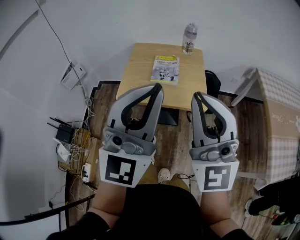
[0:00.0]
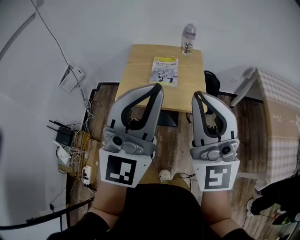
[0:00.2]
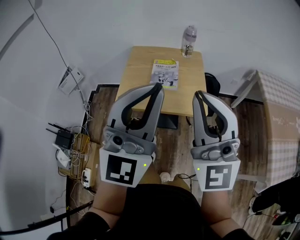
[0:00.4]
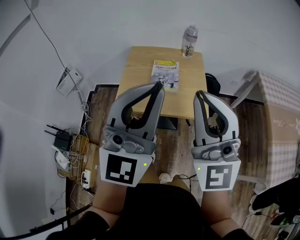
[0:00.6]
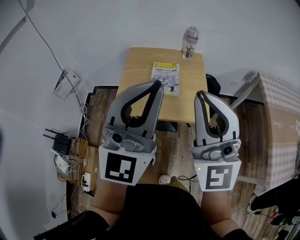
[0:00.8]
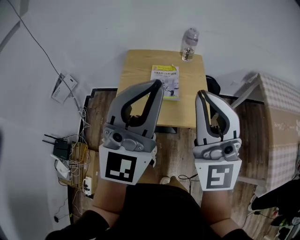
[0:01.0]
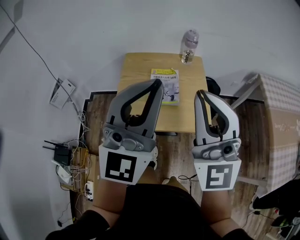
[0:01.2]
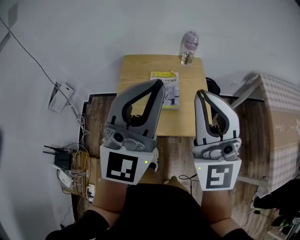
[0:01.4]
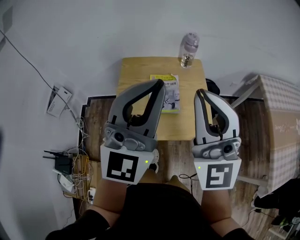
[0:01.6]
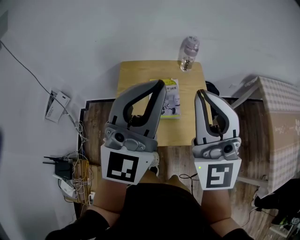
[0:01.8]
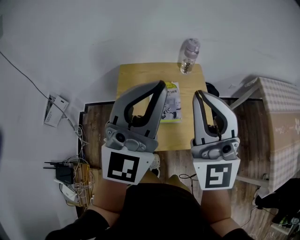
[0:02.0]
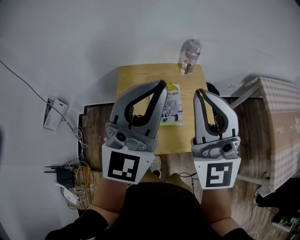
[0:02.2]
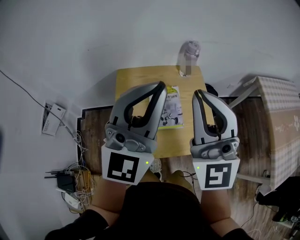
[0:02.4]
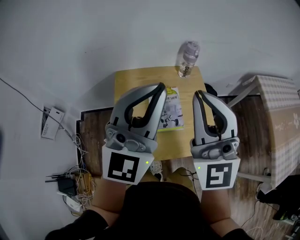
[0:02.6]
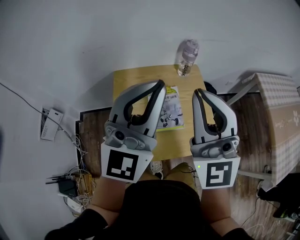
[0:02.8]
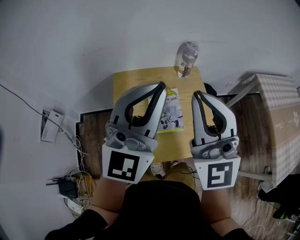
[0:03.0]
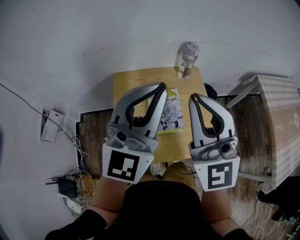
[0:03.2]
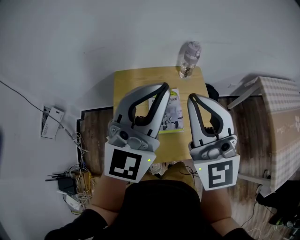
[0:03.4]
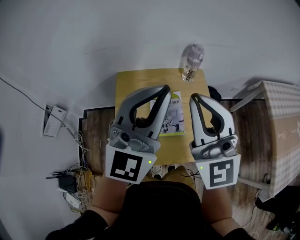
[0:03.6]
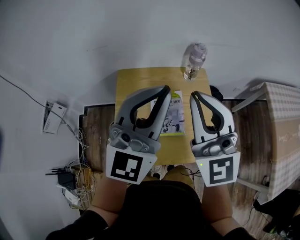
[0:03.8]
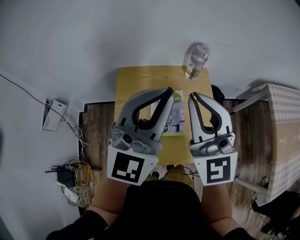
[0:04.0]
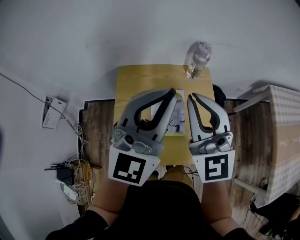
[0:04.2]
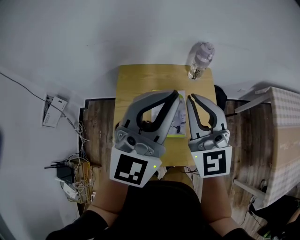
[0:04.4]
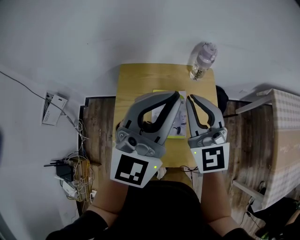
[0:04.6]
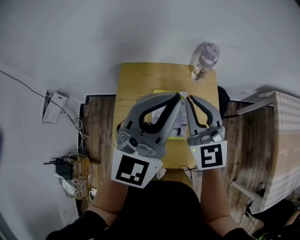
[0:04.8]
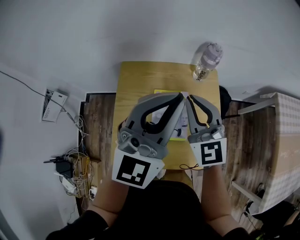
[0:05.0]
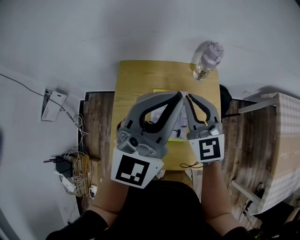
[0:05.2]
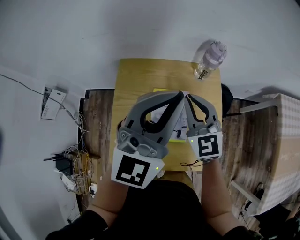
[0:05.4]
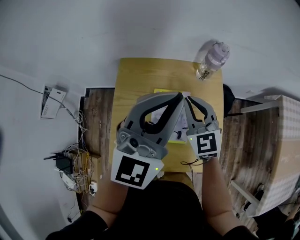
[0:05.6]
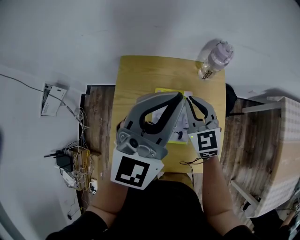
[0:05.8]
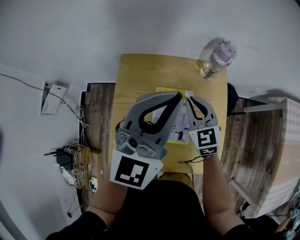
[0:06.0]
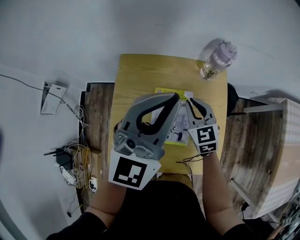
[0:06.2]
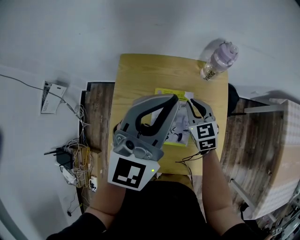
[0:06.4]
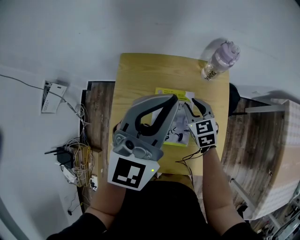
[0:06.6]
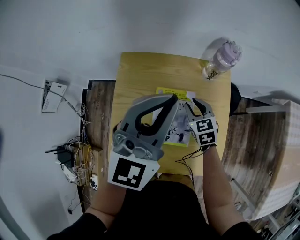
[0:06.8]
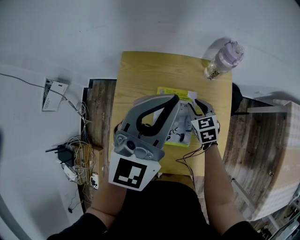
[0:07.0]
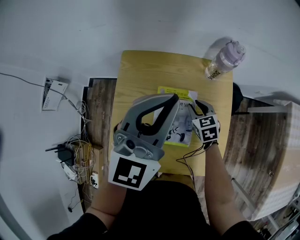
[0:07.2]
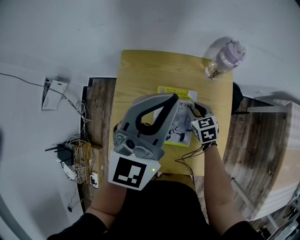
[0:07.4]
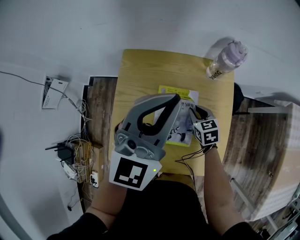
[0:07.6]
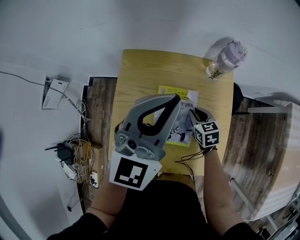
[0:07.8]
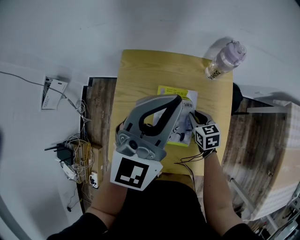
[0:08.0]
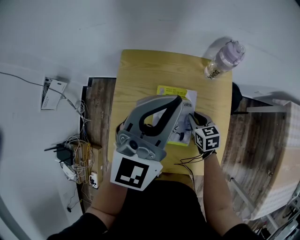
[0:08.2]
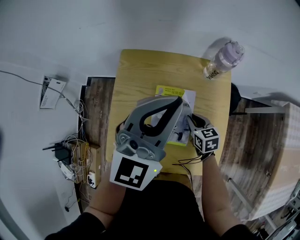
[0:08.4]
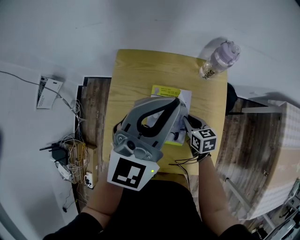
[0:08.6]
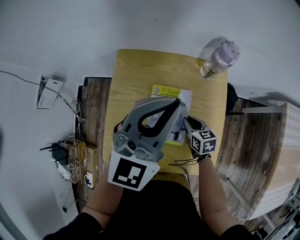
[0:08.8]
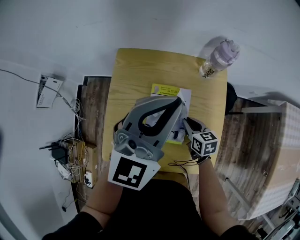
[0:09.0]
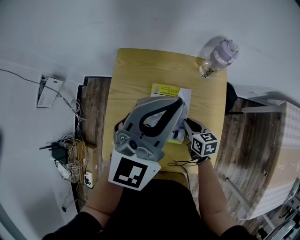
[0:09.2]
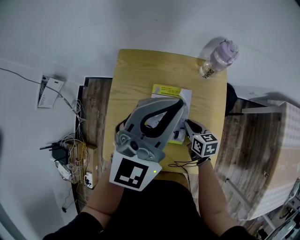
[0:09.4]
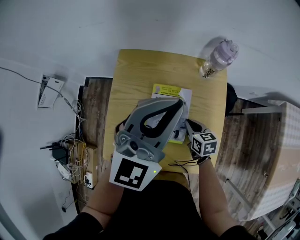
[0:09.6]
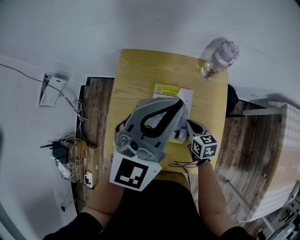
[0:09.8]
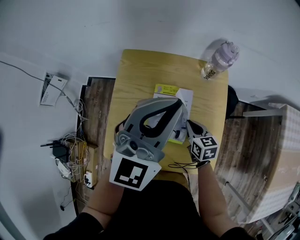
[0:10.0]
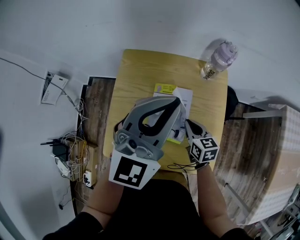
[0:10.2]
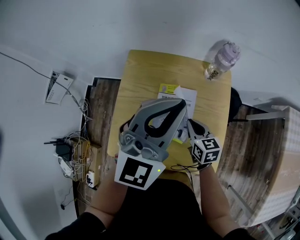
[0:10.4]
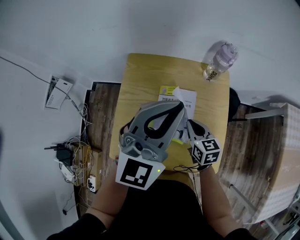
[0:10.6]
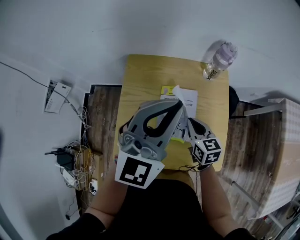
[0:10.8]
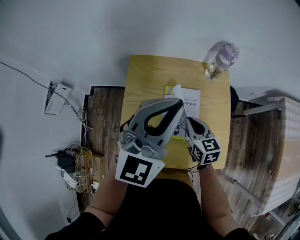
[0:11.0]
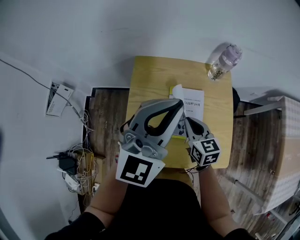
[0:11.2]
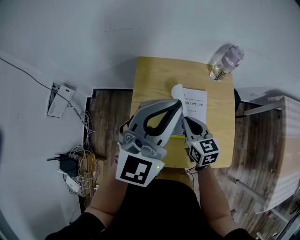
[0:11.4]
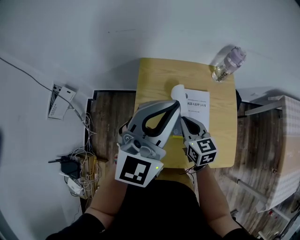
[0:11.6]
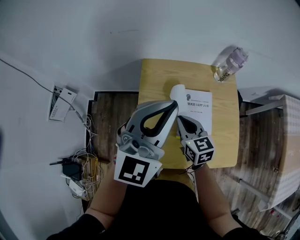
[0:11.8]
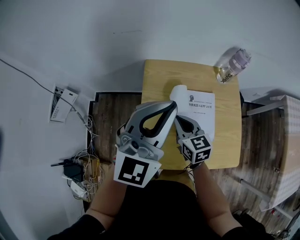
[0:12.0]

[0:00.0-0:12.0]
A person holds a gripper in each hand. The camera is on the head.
0:00.0 to 0:01.6: Both grippers move forward, approximately 25 cm.
0:01.6 to 0:03.0: The right gripper goes about 15 cm forward and to the left; the left gripper shifts about 10 cm forward.
0:03.0 to 0:04.4: The right gripper goes approximately 15 cm downward and forward. The left gripper travels forward by about 5 cm.
0:04.4 to 0:06.0: The right gripper is displaced downward and forward by some 25 cm, and swivels about 30 degrees, while the left gripper moves forward and downward, approximately 10 cm.
0:06.0 to 0:07.6: The right gripper goes about 15 cm downward, and changes its angle by some 30 degrees.
0:07.6 to 0:09.0: The right gripper moves backward, about 5 cm.
0:09.0 to 0:10.4: The right gripper travels upward by approximately 5 cm.
0:10.4 to 0:12.0: Both grippers travel together to the left, some 20 cm.

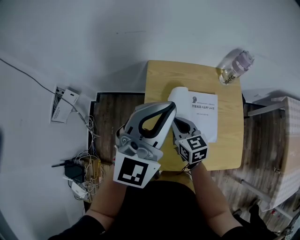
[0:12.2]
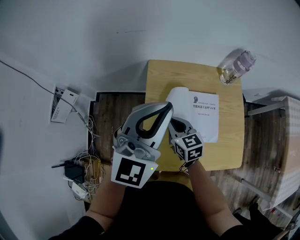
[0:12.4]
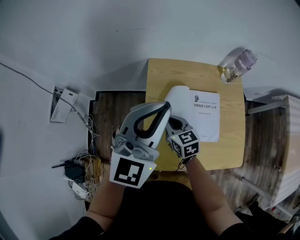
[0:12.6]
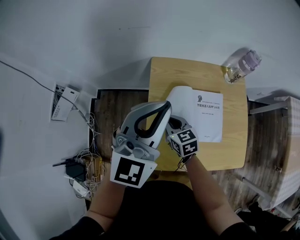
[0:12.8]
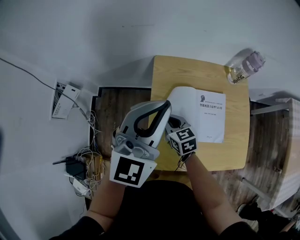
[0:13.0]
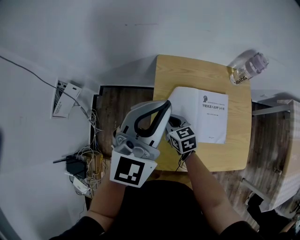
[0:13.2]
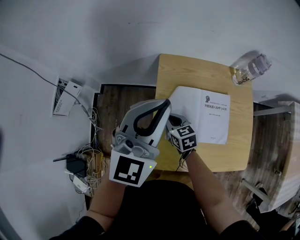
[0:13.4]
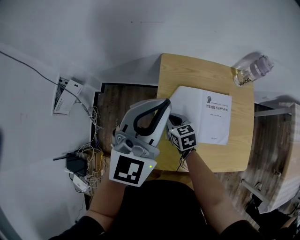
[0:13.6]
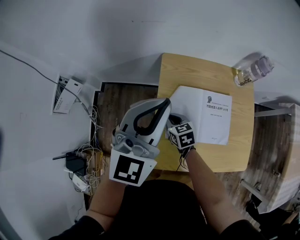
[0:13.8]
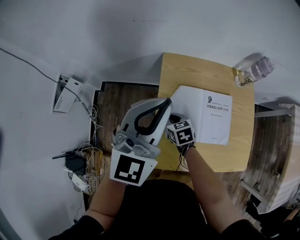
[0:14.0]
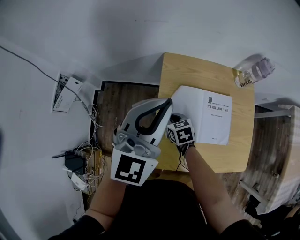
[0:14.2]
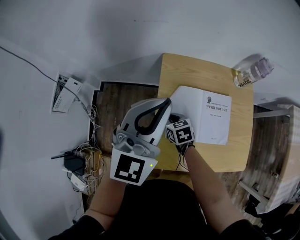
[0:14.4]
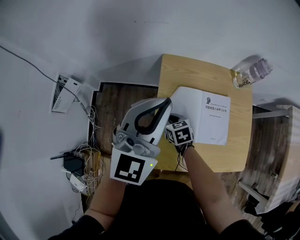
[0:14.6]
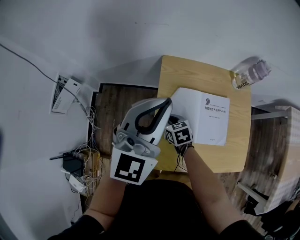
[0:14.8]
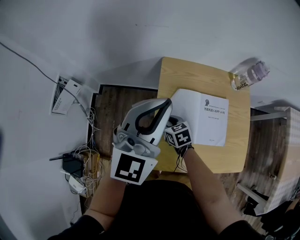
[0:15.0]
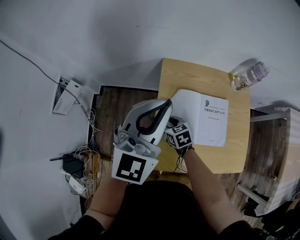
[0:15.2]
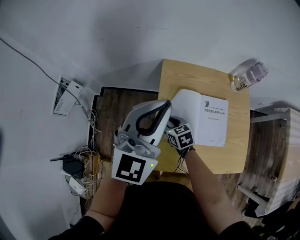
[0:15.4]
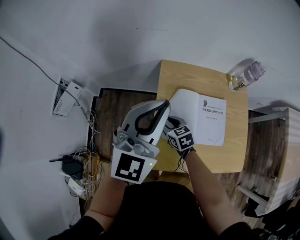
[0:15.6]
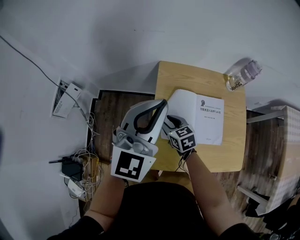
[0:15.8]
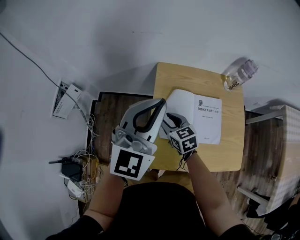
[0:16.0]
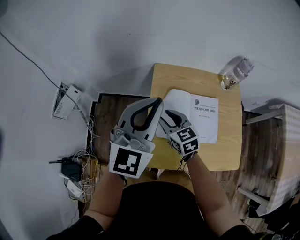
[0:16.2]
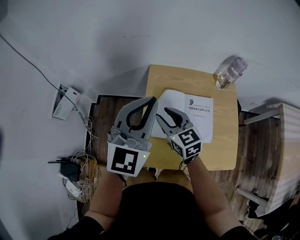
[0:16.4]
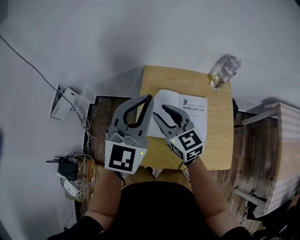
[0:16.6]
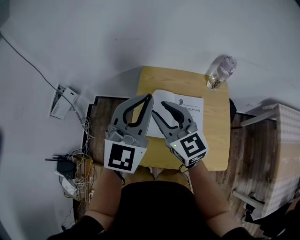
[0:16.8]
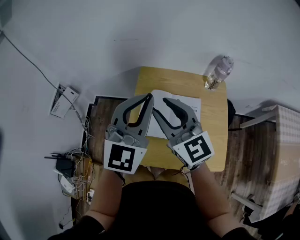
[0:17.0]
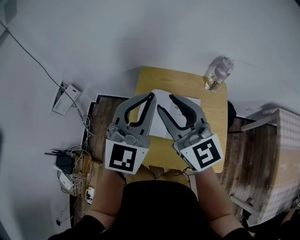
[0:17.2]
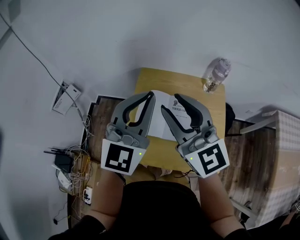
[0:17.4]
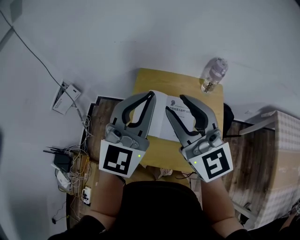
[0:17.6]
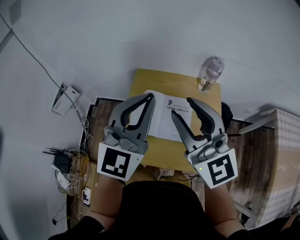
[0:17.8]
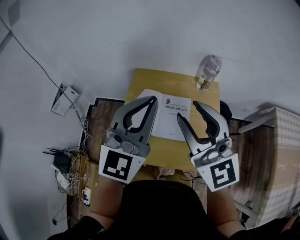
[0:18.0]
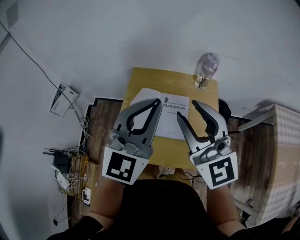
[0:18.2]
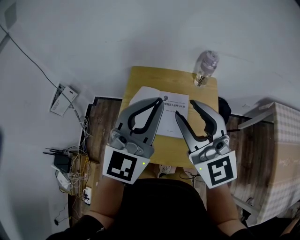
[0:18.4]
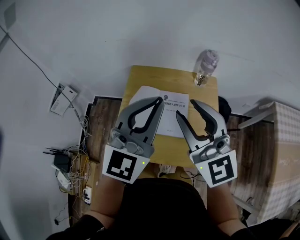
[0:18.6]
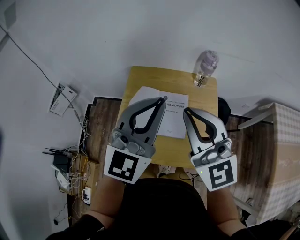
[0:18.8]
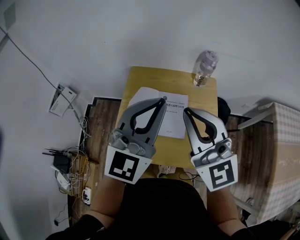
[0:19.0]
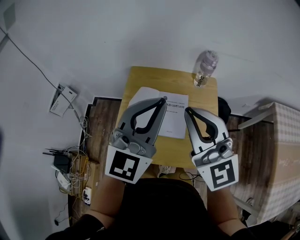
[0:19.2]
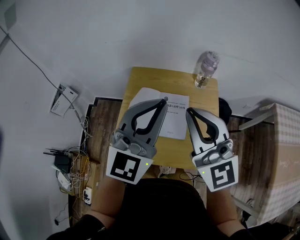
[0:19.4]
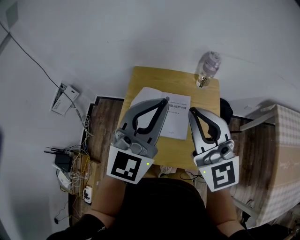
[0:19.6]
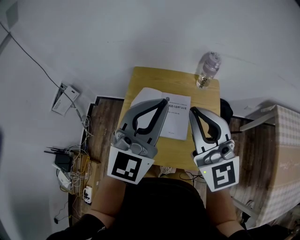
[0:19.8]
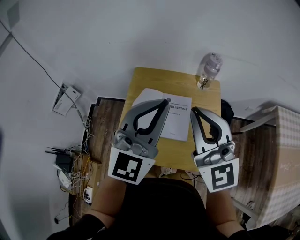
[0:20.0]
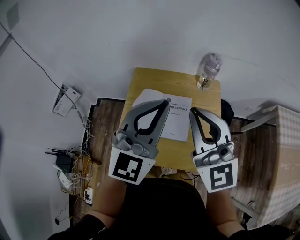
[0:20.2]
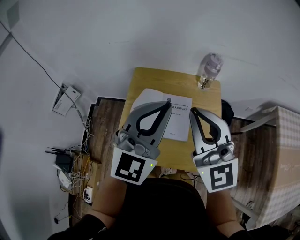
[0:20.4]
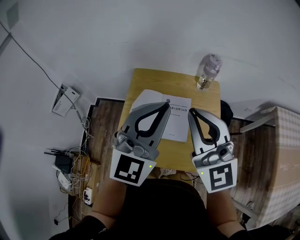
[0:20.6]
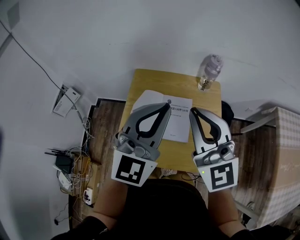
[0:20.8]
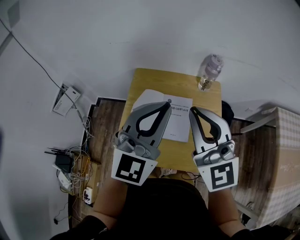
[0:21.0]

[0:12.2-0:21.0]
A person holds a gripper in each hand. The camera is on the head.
0:12.2 to 0:13.6: The left gripper is displaced to the left by roughly 5 cm, while the right gripper travels downward and to the left by roughly 15 cm.
0:13.6 to 0:15.2: The right gripper opens up.
0:15.2 to 0:16.6: The left gripper goes roughly 5 cm to the right; the right gripper is displaced upward by some 25 cm, and angles its fingers upward, by some 30 degrees.
0:16.6 to 0:18.0: The left gripper heads to the right, backward and upward, covering approximately 15 cm; the right gripper travels upward, to the right and backward by about 30 cm, and turns by about 30 degrees.
0:18.0 to 0:19.6: The right gripper closes.
0:19.6 to 0:21.0: Both grippers stay put.

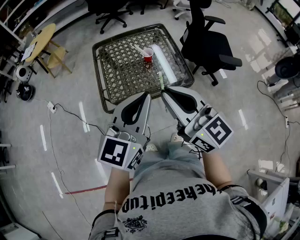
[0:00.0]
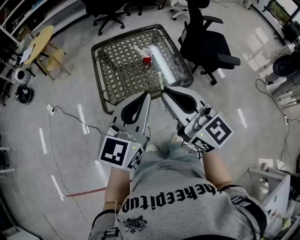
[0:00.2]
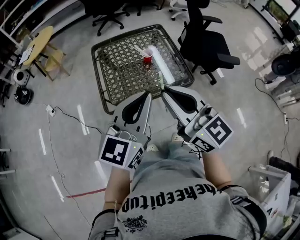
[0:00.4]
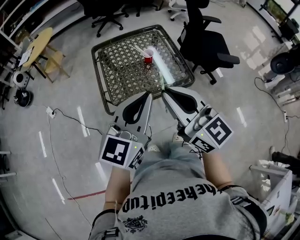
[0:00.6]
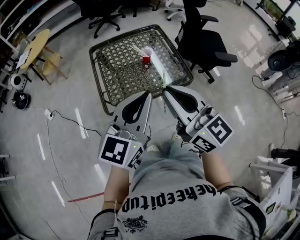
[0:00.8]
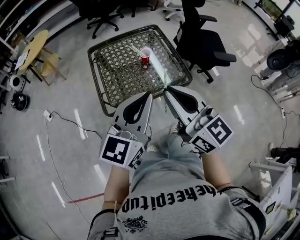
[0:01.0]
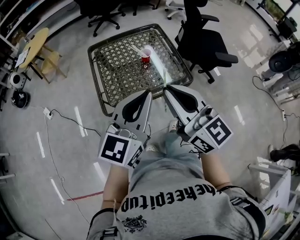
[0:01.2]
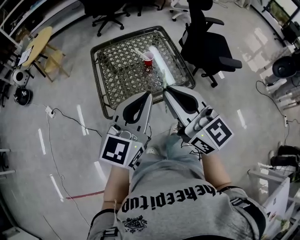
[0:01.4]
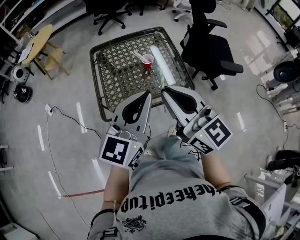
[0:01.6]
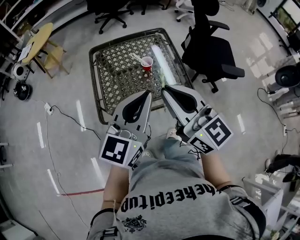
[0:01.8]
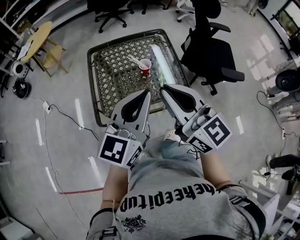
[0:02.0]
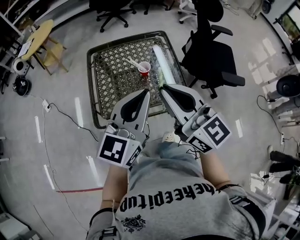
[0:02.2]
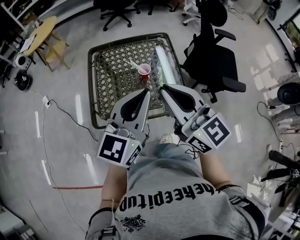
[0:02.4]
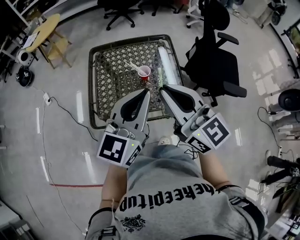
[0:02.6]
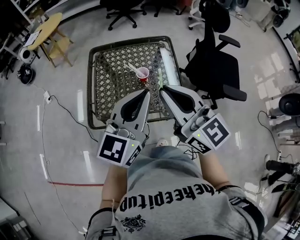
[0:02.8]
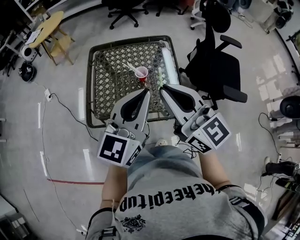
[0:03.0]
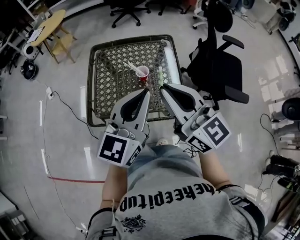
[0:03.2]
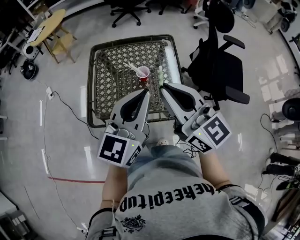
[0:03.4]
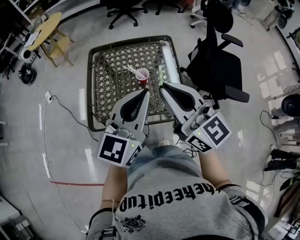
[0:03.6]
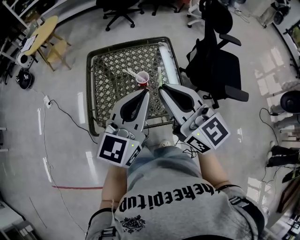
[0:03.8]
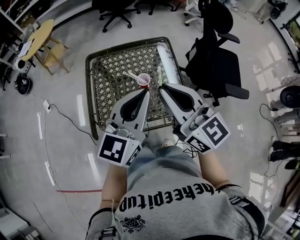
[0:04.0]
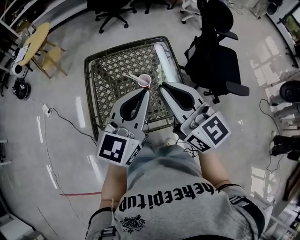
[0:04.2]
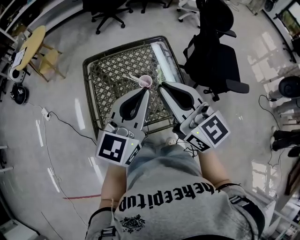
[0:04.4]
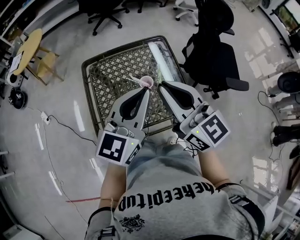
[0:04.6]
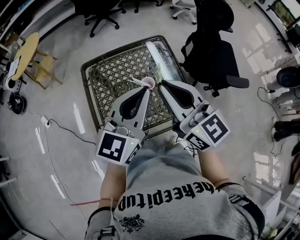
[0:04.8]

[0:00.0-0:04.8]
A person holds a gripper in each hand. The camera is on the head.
0:00.0 to 0:01.6: The grippers both shift forward by some 5 cm.
0:01.6 to 0:03.2: The right gripper is displaced forward and to the right by approximately 15 cm, while the left gripper is displaced to the right and forward by approximately 15 cm.
0:03.2 to 0:04.8: Both grippers travel together forward and to the left, approximately 10 cm.
